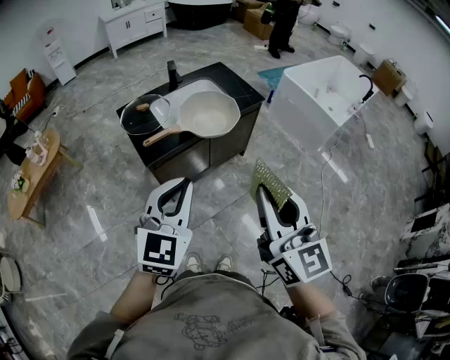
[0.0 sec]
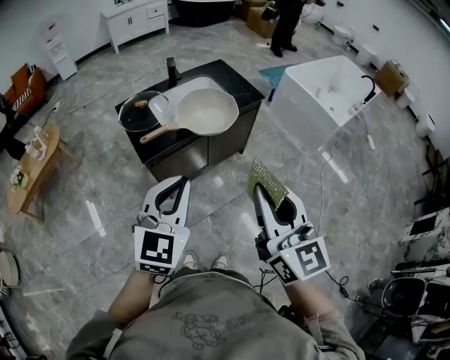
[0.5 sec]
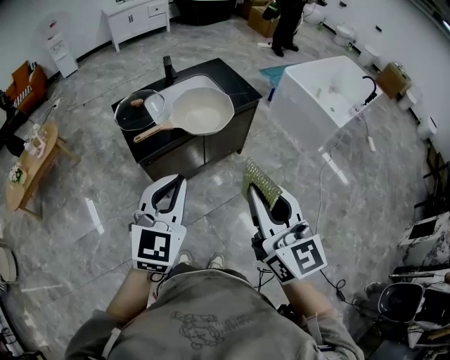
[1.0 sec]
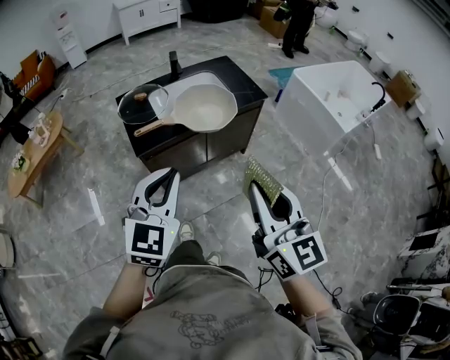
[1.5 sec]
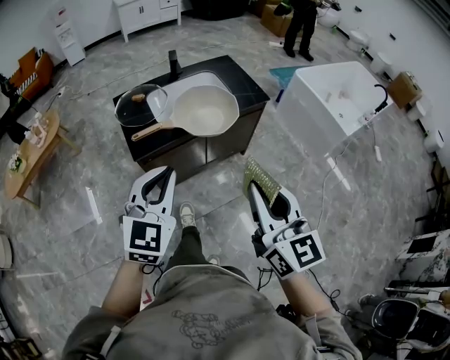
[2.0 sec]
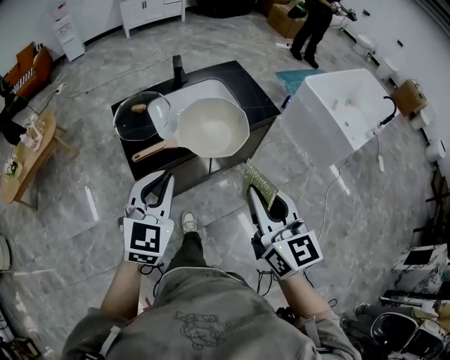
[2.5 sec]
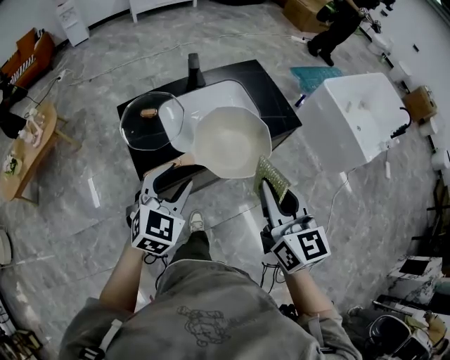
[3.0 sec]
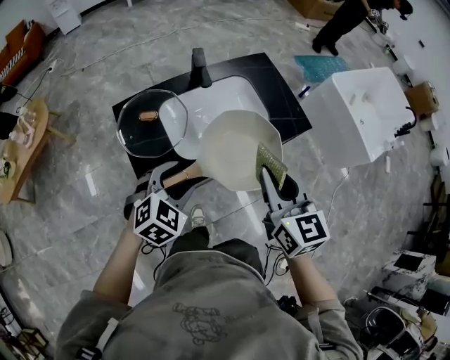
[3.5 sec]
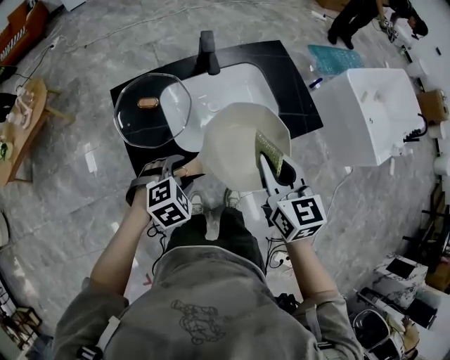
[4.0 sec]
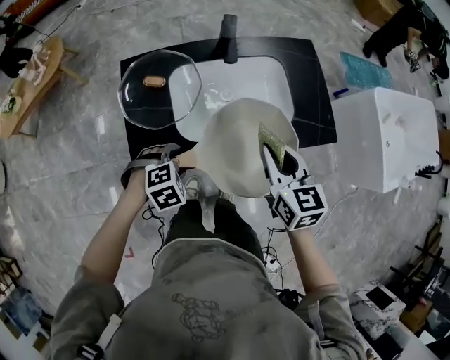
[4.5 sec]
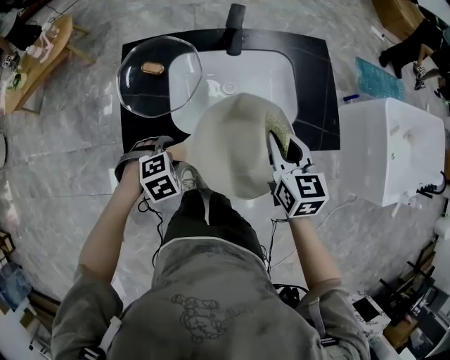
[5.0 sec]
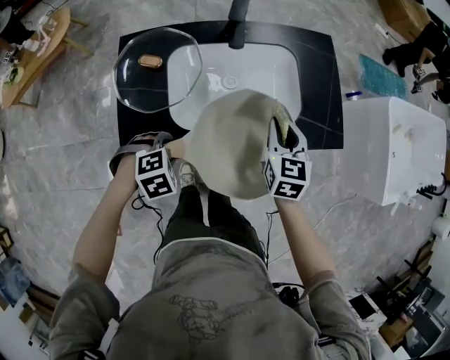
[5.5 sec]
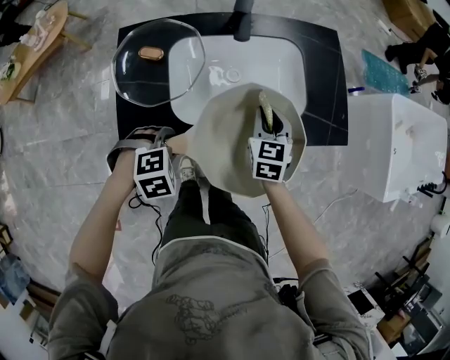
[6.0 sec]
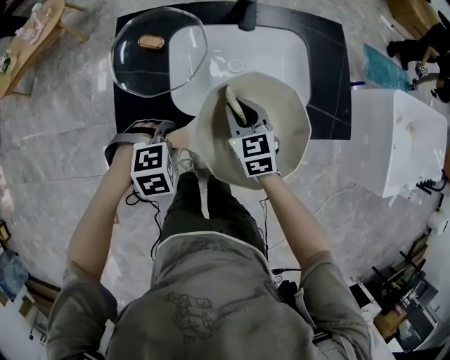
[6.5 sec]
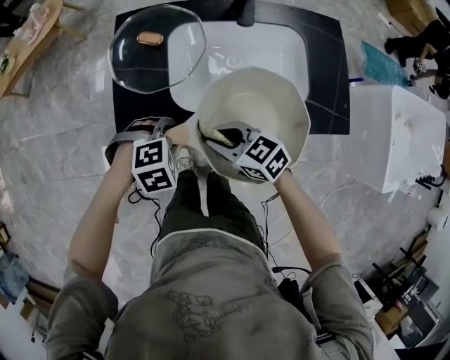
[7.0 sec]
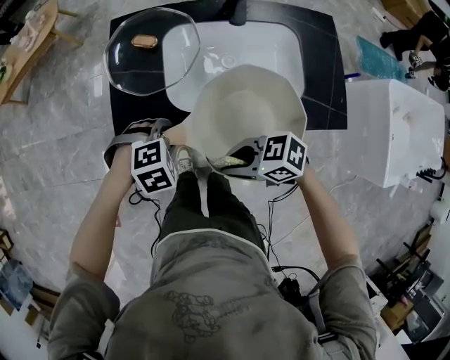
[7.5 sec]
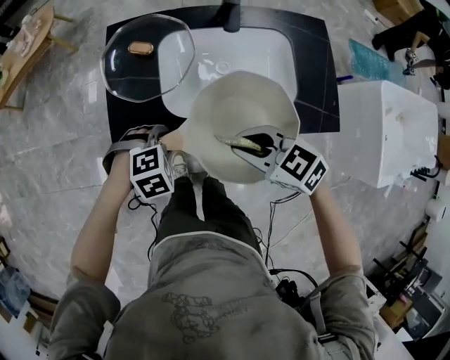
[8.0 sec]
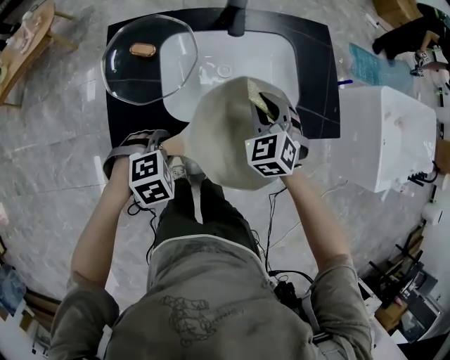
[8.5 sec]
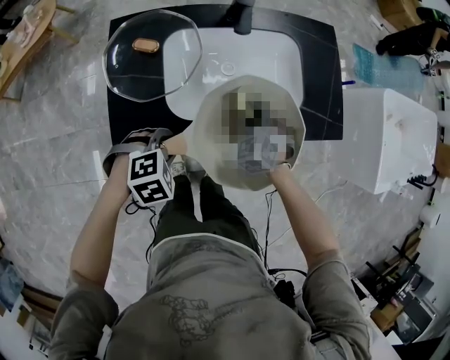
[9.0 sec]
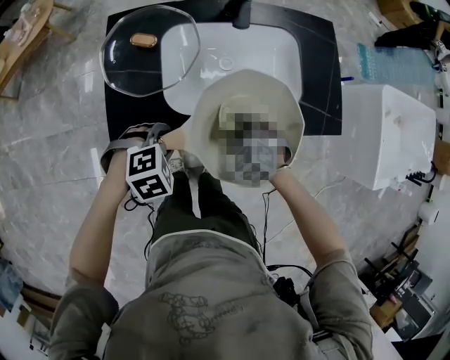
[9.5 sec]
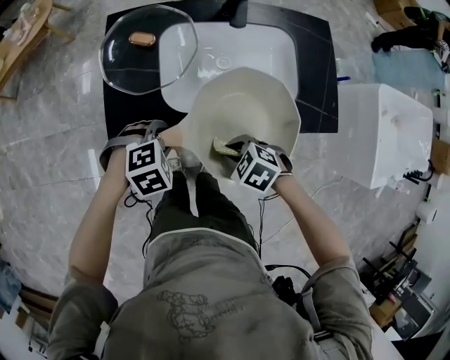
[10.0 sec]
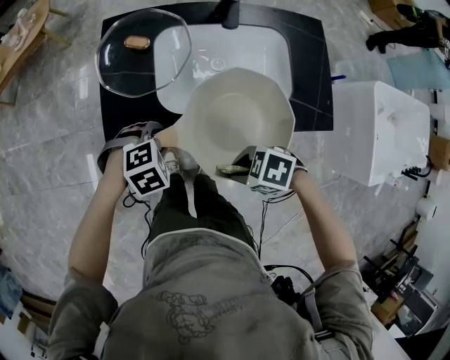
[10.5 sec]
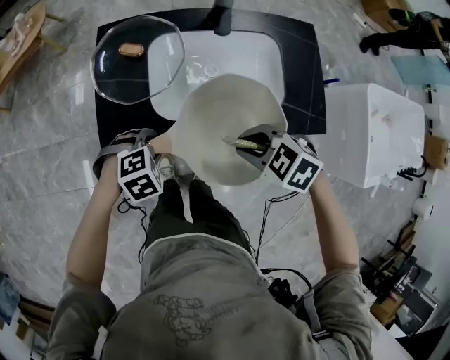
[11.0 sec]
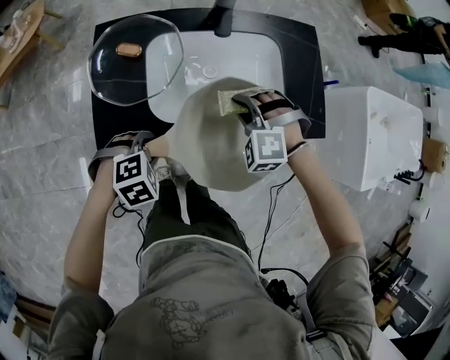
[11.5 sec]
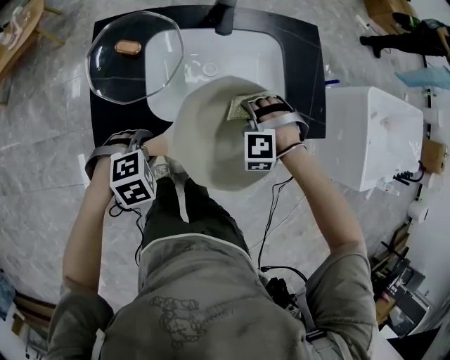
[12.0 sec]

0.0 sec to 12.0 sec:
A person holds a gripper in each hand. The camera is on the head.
0.0 sec to 2.0 sec: The right gripper goes about 10 cm forward, downward and to the right, while the left gripper is displaced forward by some 5 cm.
2.0 sec to 4.0 sec: The right gripper is displaced forward by approximately 40 cm, and turns by some 20 degrees. The left gripper goes approximately 40 cm forward and downward, points its fingers about 50 degrees further downward, and opens up.
4.0 sec to 6.0 sec: The left gripper travels downward by roughly 10 cm. Meanwhile the right gripper travels downward by about 20 cm.
6.0 sec to 8.0 sec: The right gripper shifts by roughly 15 cm, and changes its angle by roughly 60 degrees.
8.0 sec to 10.0 sec: The right gripper moves downward, roughly 15 cm, and tilts its fingers about 30 degrees downward.
10.0 sec to 12.0 sec: The right gripper moves about 10 cm upward and comes back, and swivels approximately 60 degrees.

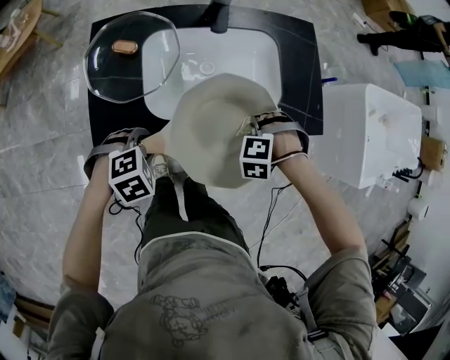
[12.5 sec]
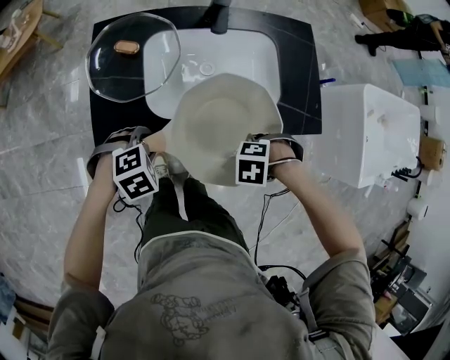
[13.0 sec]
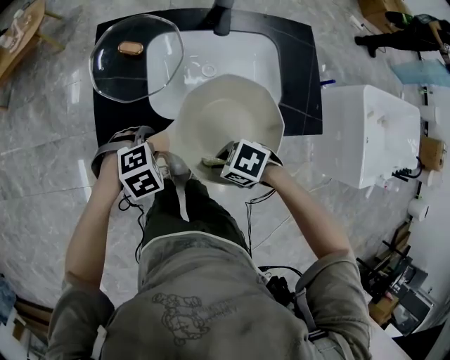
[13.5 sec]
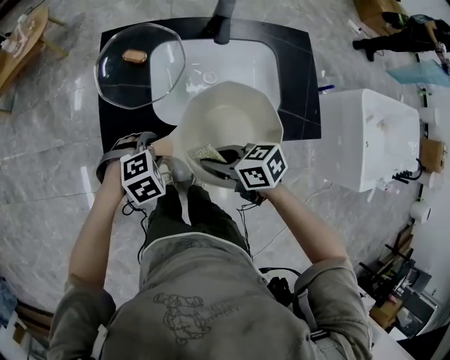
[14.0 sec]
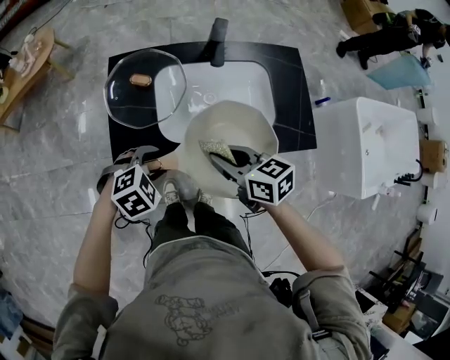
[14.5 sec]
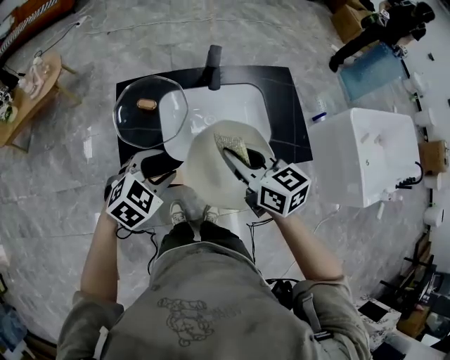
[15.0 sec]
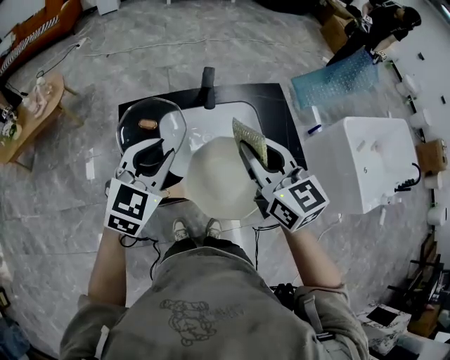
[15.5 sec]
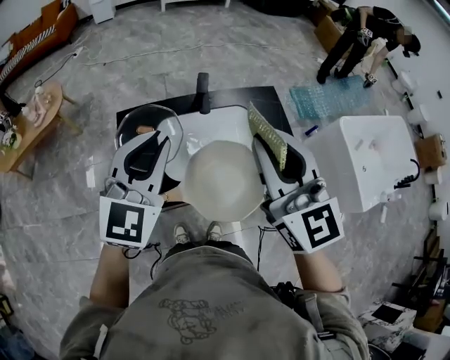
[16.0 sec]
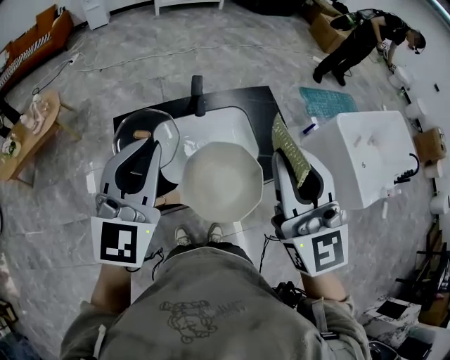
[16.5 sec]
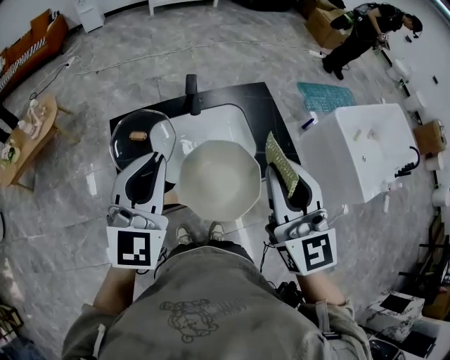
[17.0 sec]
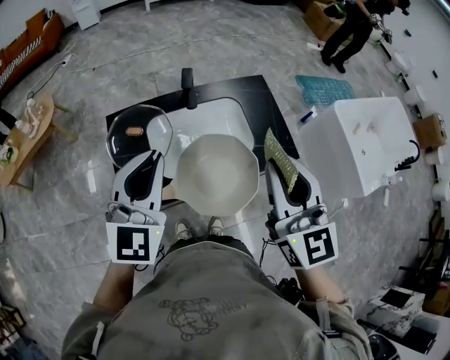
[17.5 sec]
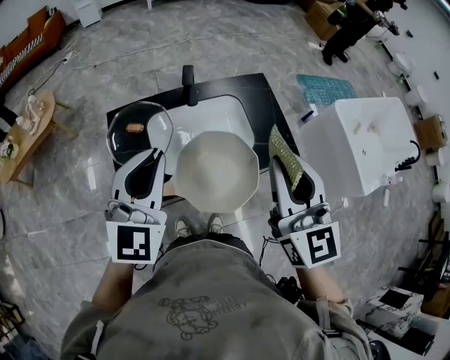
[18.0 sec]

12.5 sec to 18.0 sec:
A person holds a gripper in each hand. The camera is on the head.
12.5 sec to 14.5 sec: The left gripper is displaced upward by about 5 cm. Meanwhile the right gripper changes place by about 20 cm, and tilts its fingers some 40 degrees upward.
14.5 sec to 16.0 sec: Both grippers move upward, roughly 35 cm. The left gripper tilts its fingers roughly 60 degrees upward, and closes its fingers; the right gripper tilts its fingers about 30 degrees upward.
16.0 sec to 18.0 sec: The right gripper is displaced to the right by about 10 cm.

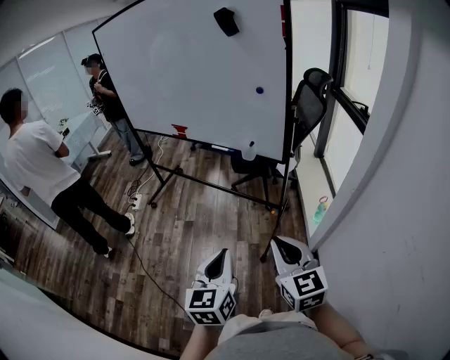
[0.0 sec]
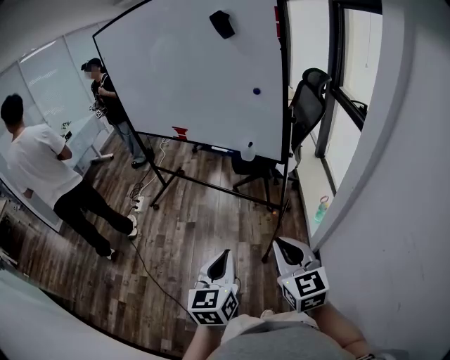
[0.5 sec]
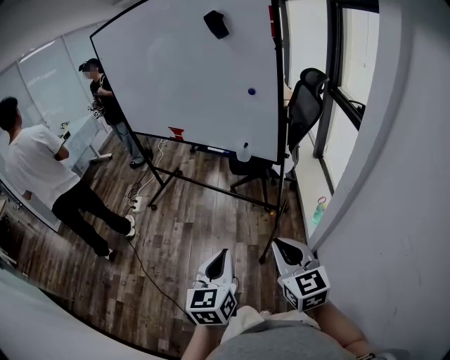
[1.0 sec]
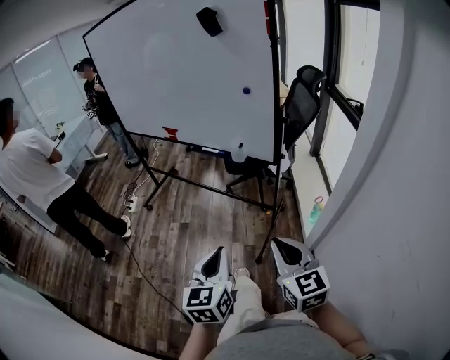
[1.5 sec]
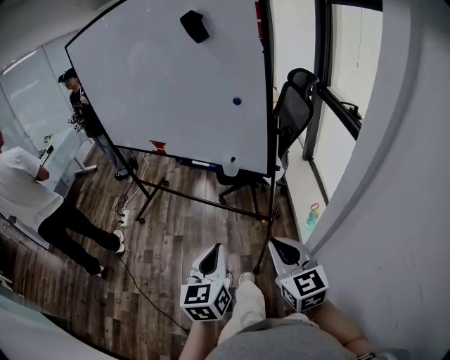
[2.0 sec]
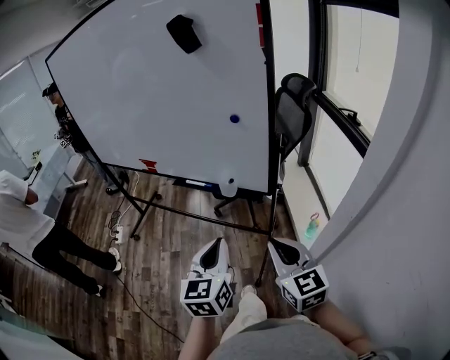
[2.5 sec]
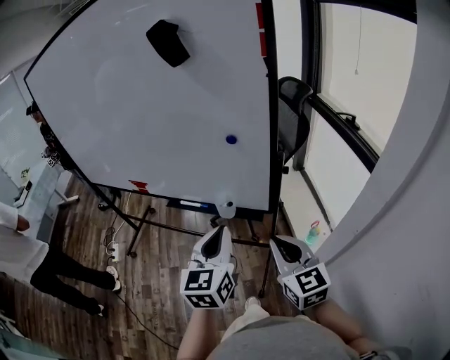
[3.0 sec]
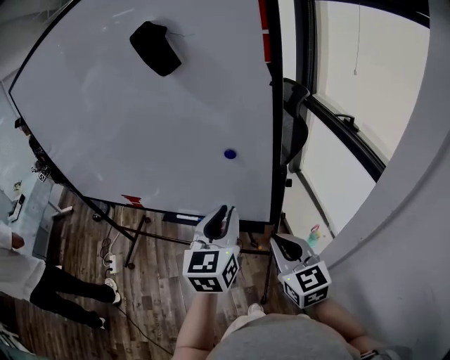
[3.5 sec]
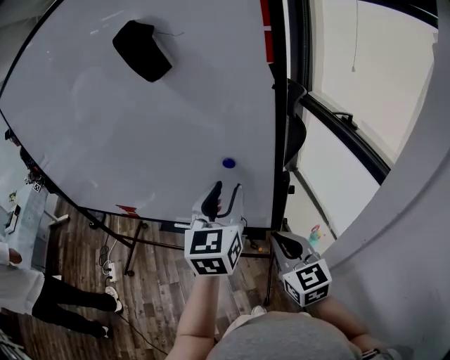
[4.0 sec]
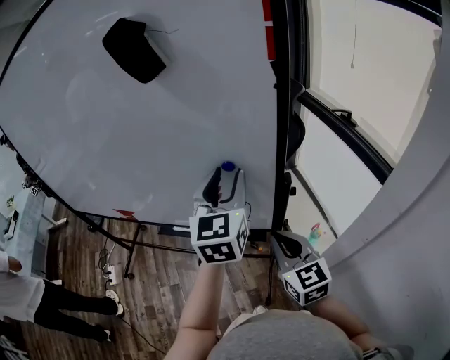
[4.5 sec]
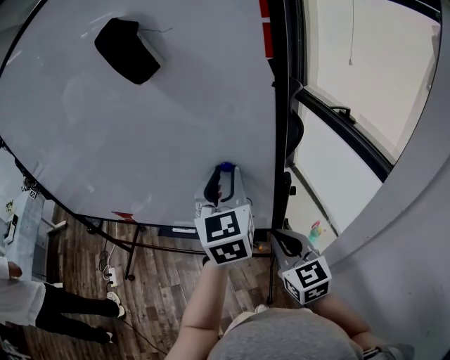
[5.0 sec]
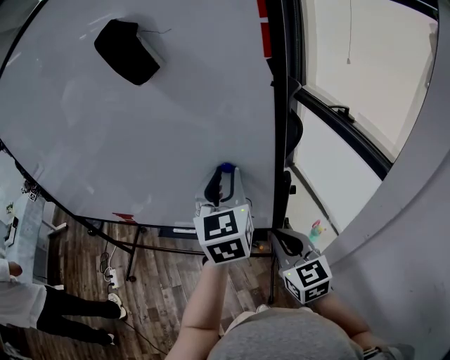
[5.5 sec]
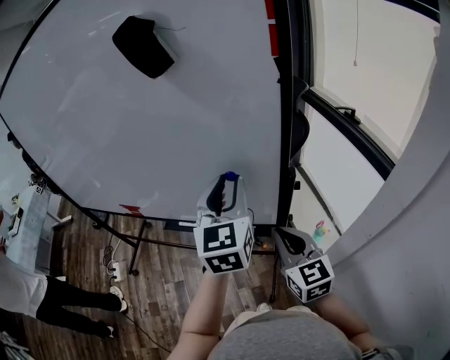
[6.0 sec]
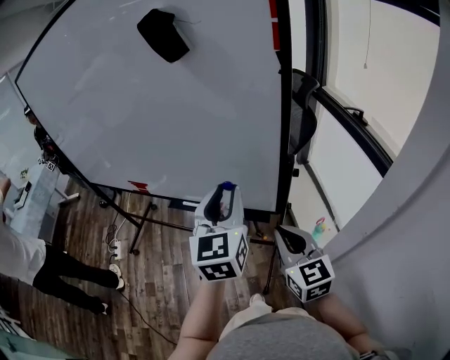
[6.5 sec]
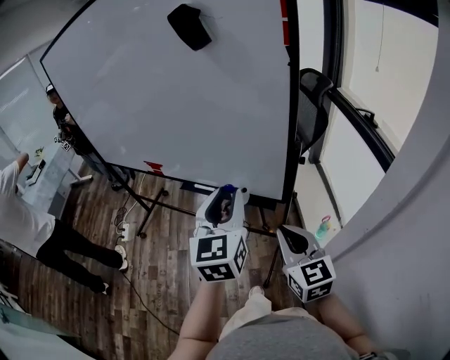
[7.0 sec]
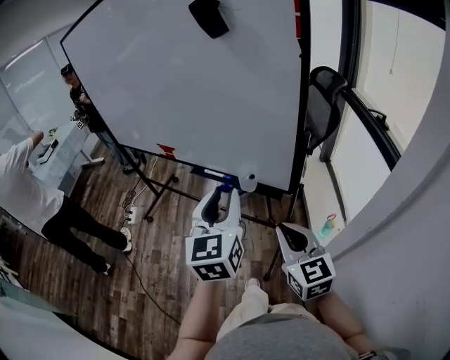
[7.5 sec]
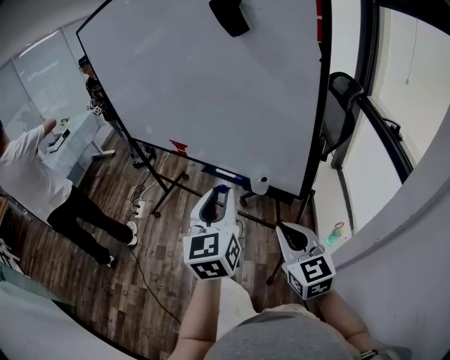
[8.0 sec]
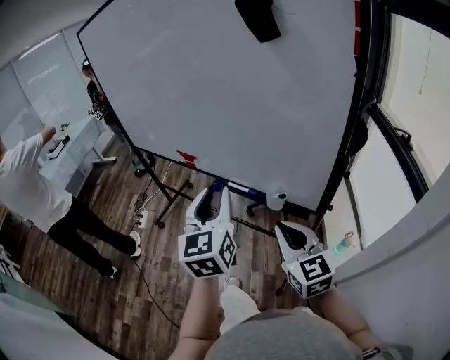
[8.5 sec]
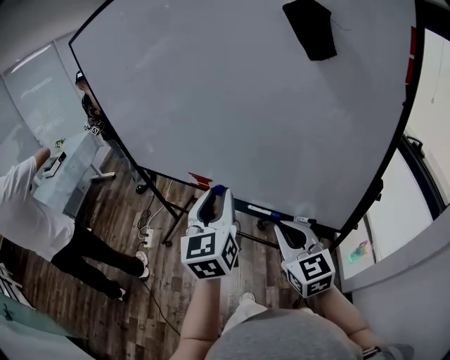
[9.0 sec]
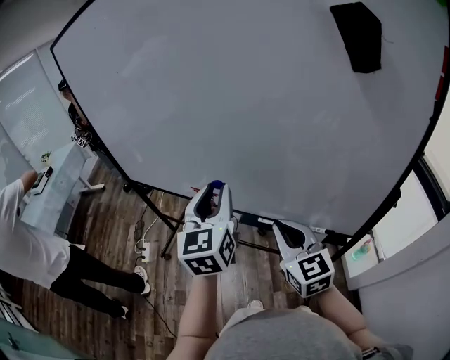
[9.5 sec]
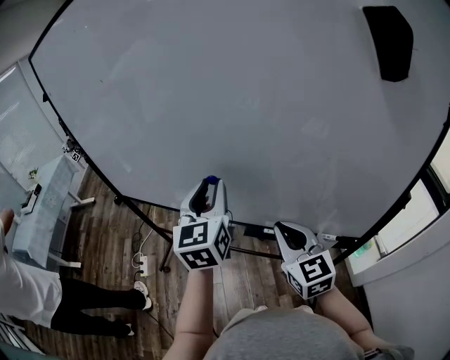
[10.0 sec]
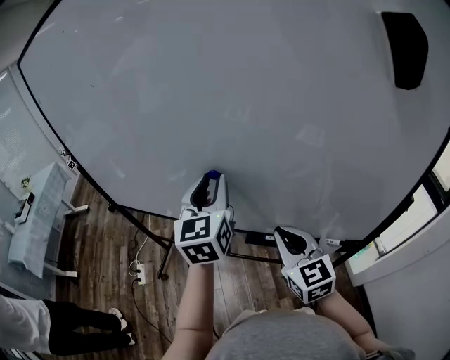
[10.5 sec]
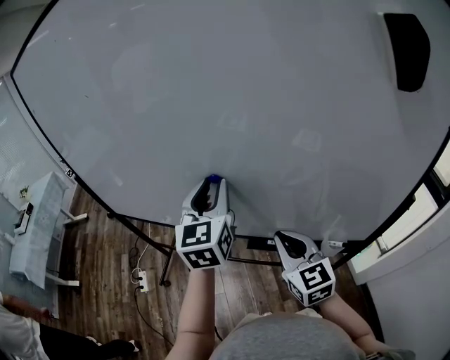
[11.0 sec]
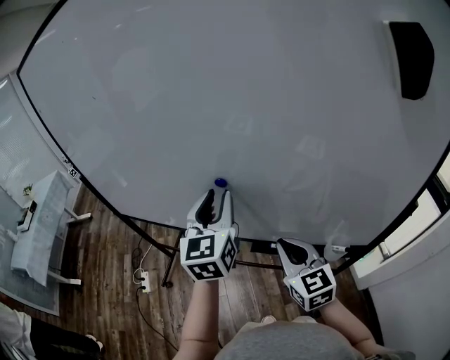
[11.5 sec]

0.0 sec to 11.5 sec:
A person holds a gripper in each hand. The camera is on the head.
0.0 sec to 2.0 sec: The grippers both shift forward and to the right by some 10 cm.
2.0 sec to 4.0 sec: Both grippers move forward, approximately 35 cm. The left gripper changes its angle by approximately 20 degrees, and opens.
4.0 sec to 6.0 sec: The grippers move only a little.
6.0 sec to 7.5 sec: The left gripper moves backward and to the left, roughly 20 cm, while the right gripper moves backward, approximately 15 cm.
7.5 sec to 9.5 sec: Both grippers move forward and to the left, approximately 35 cm.
9.5 sec to 11.5 sec: The left gripper is displaced forward by some 10 cm, while the right gripper is displaced forward by roughly 10 cm.
